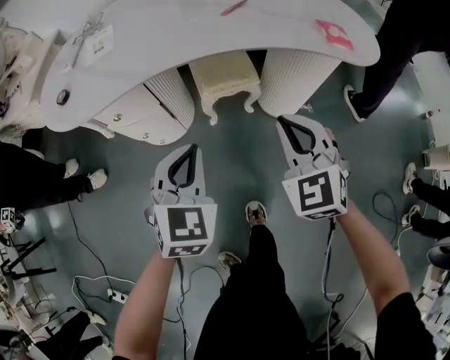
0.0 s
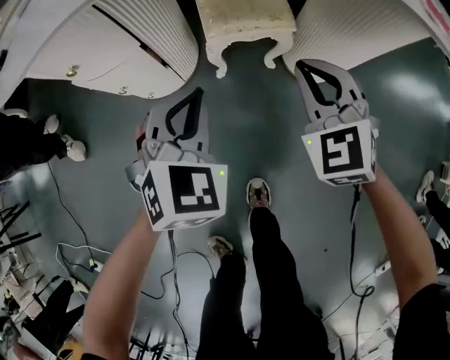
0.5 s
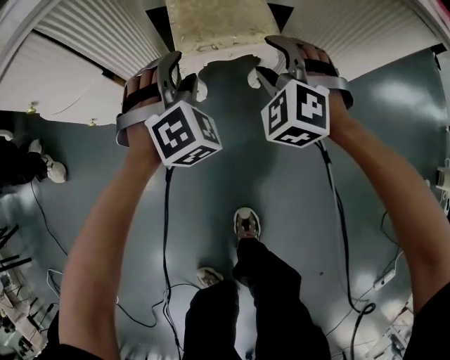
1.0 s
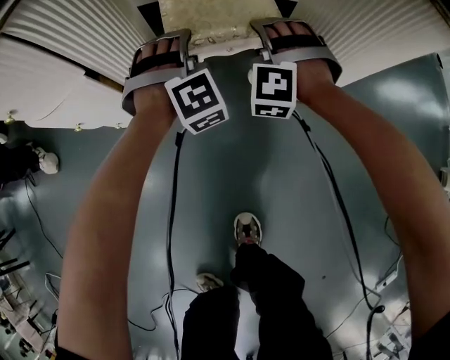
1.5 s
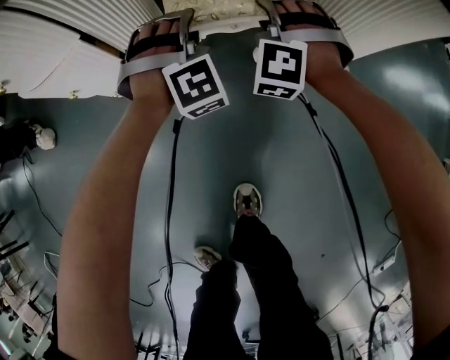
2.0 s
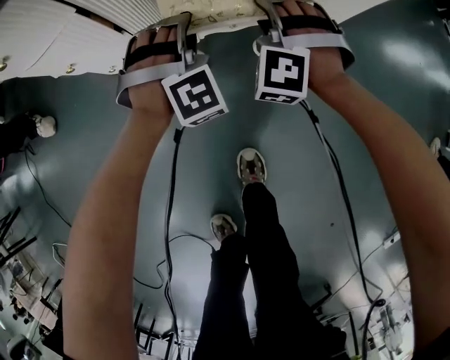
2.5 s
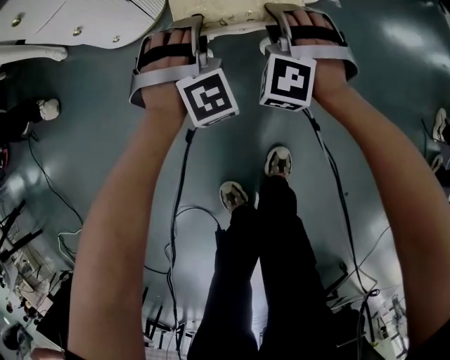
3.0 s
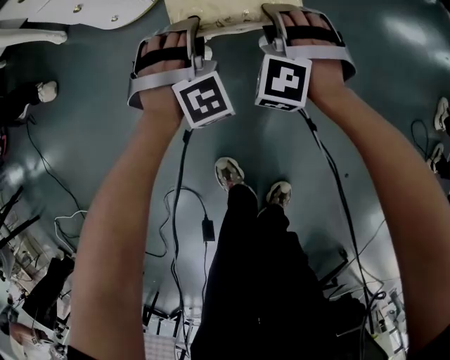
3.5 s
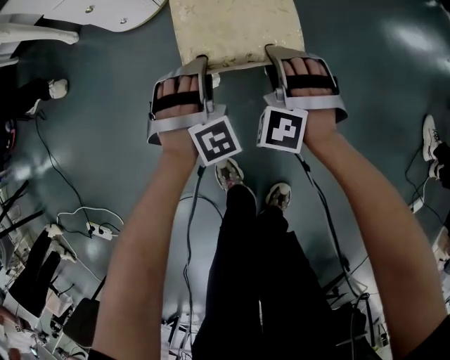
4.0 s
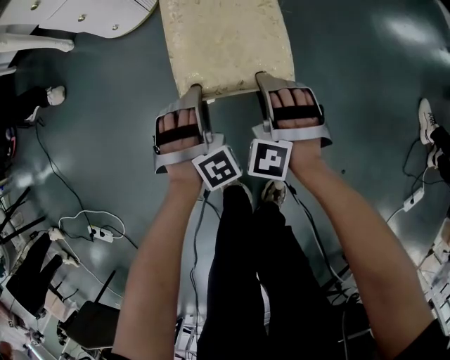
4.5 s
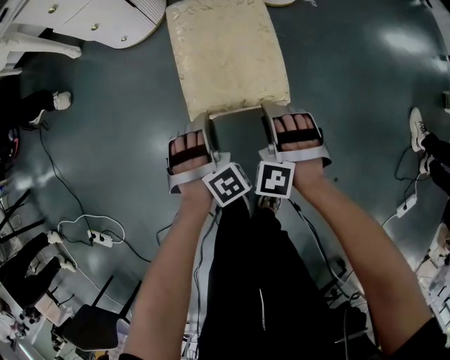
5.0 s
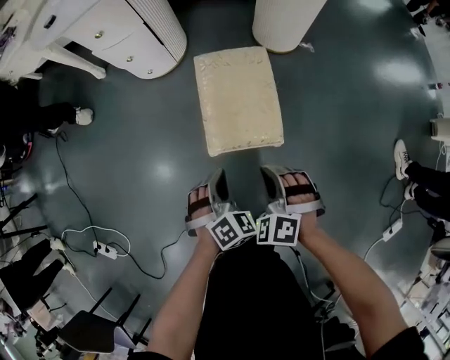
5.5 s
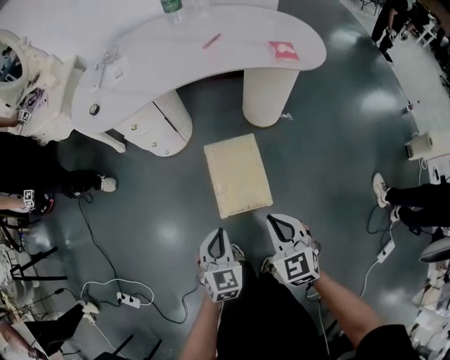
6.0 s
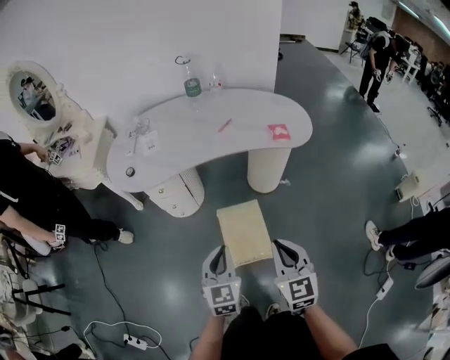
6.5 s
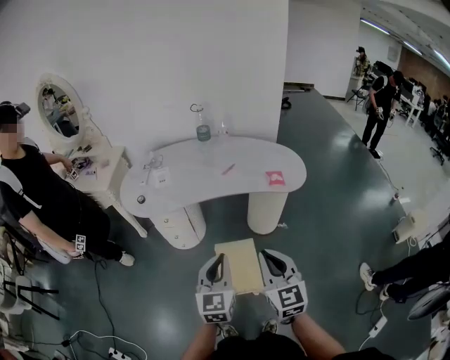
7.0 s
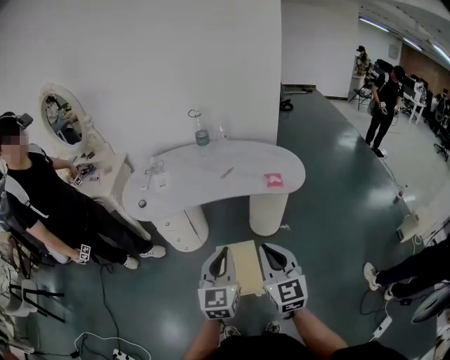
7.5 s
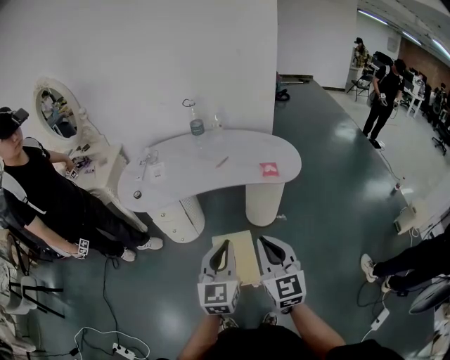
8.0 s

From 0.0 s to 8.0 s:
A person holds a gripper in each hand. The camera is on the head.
From 0.0 s to 2.0 s: The two grippers go some 50 cm downward and forward. The left gripper rolls clockwise, seen from behind, by approximately 50 degrees, and opens; the right gripper rotates around the line of its fingers by approximately 50 degrees, counterclockwise from behind, and opens up.
From 2.0 s to 4.0 s: Both grippers are carried backward, roughly 50 cm.
From 4.0 s to 6.0 s: Both grippers move upward, some 40 cm. The right gripper rotates around the line of its fingers by roughly 50 degrees, clockwise from behind, and closes. The left gripper twists some 70 degrees counterclockwise, seen from behind, and closes.
From 6.0 s to 8.0 s: Both grippers move upward, roughly 35 cm. The left gripper angles its fingers upward, by about 30 degrees. The right gripper swivels roughly 30 degrees.

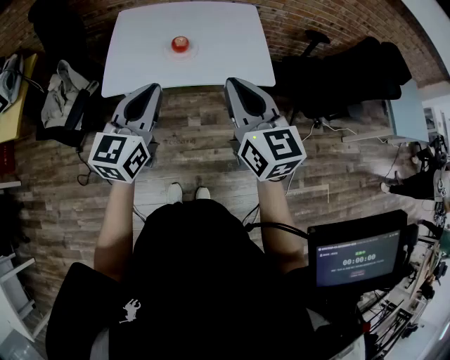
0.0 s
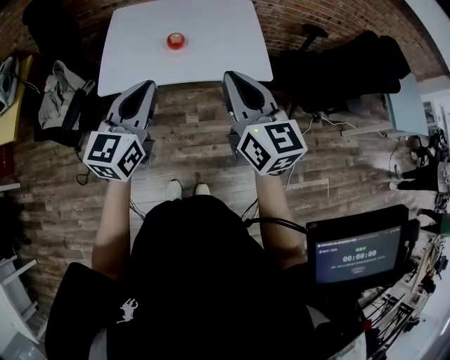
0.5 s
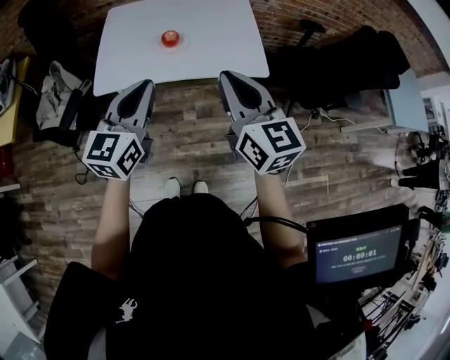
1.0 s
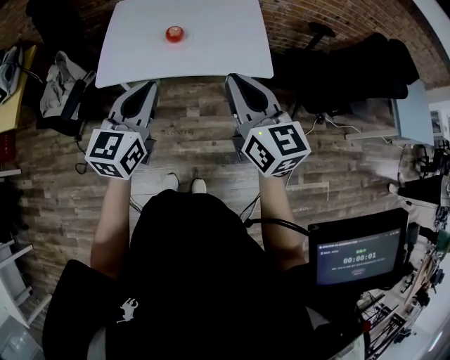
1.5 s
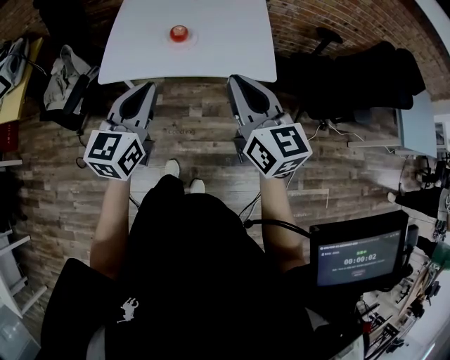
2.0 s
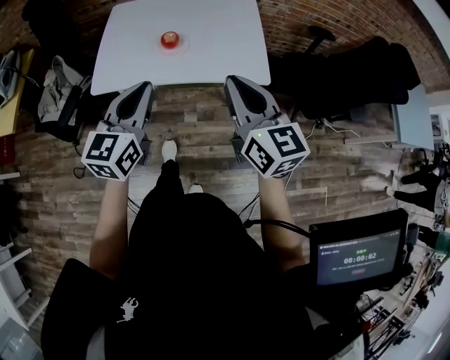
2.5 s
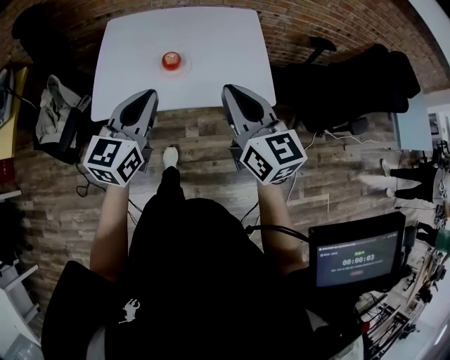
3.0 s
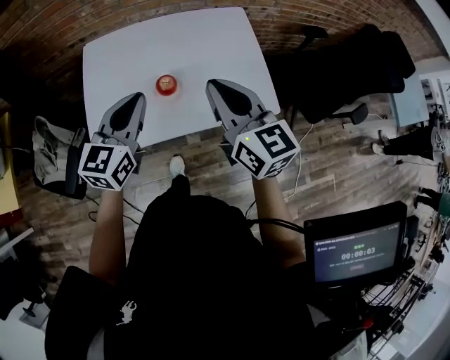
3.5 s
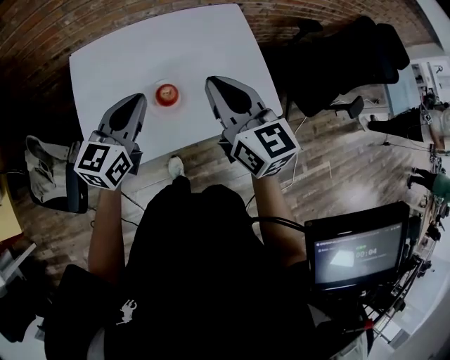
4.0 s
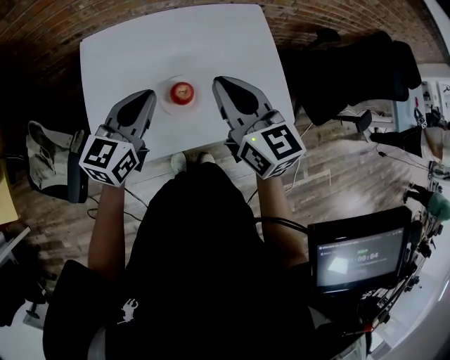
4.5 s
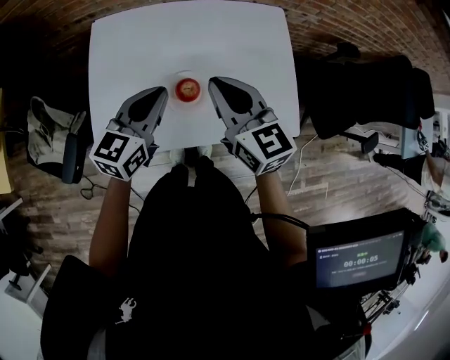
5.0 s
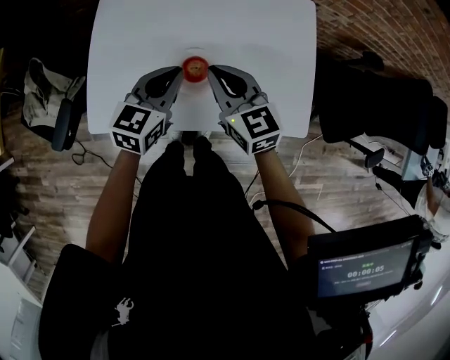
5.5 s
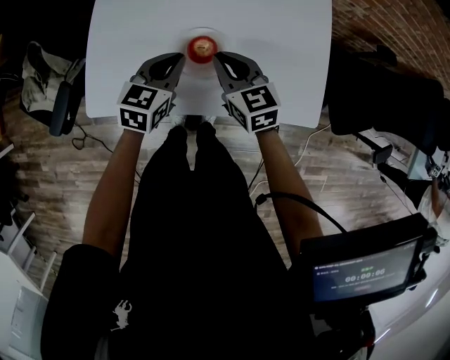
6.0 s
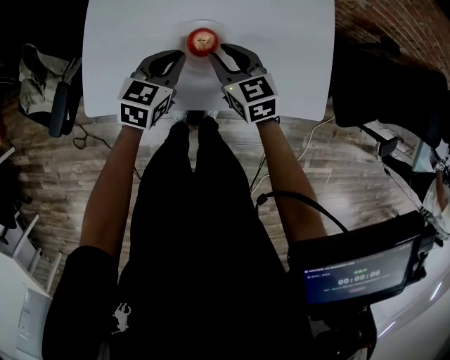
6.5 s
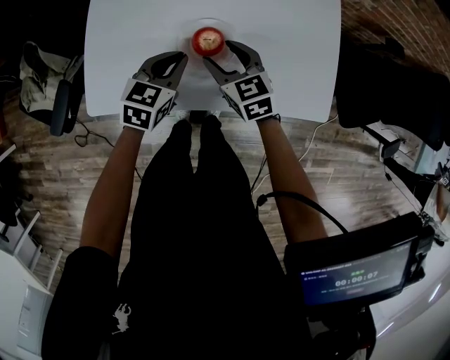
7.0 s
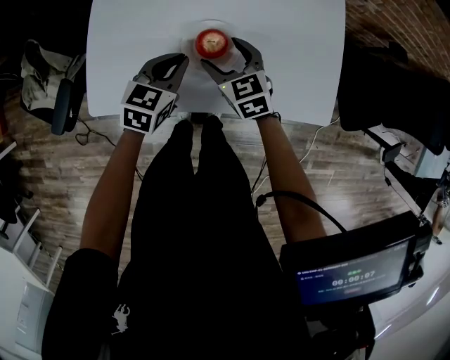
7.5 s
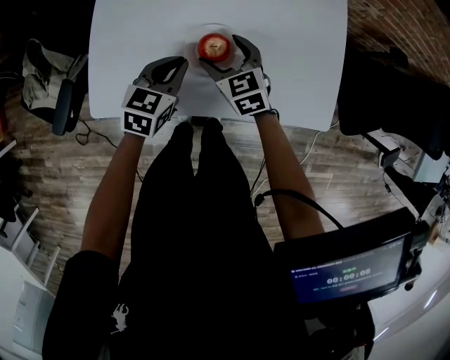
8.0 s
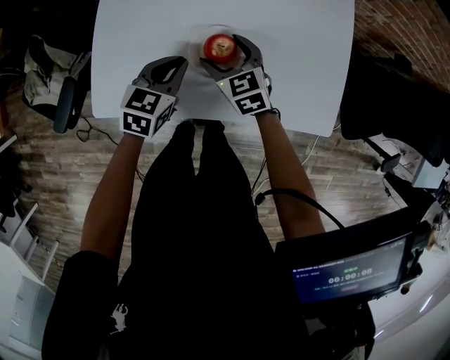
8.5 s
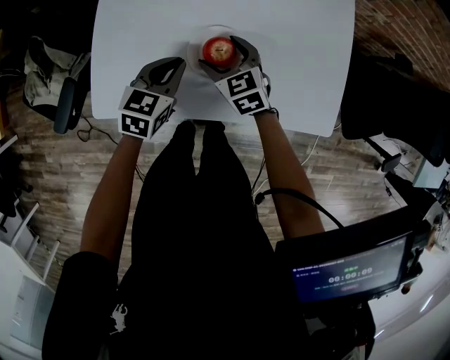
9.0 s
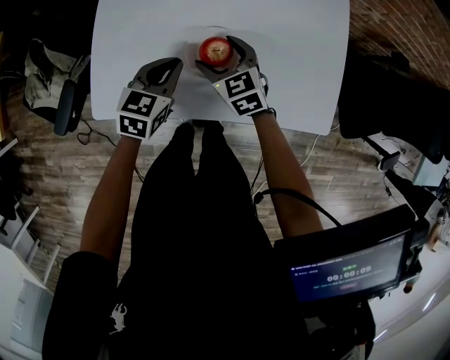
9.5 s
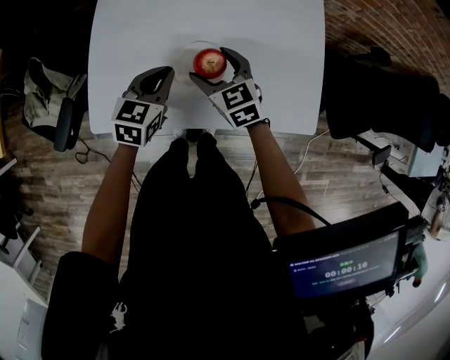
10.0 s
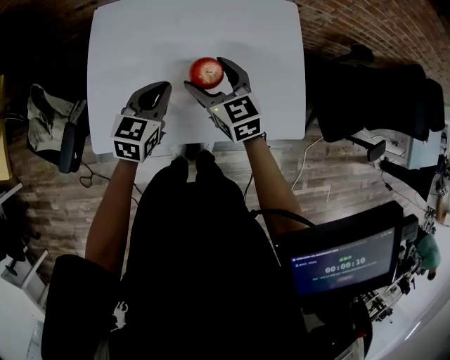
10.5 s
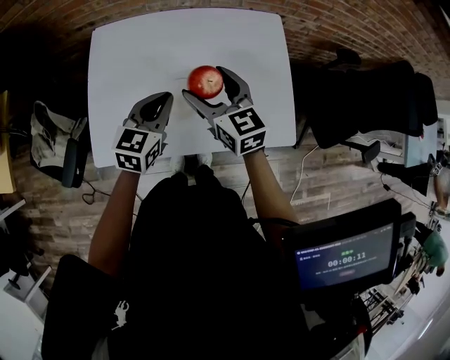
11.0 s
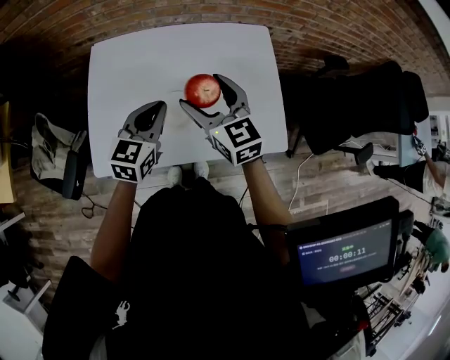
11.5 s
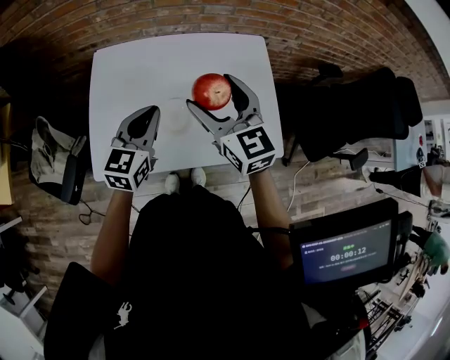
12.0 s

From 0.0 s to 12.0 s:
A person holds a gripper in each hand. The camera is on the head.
From 0.0 s to 2.0 s: The right gripper goes some 5 cm to the right.
From 2.0 s to 4.0 s: Both grippers move forward, some 30 cm. The left gripper rotates about 20 degrees.
From 4.0 s to 6.0 s: Both grippers move downward, about 20 cm. The right gripper rotates about 30 degrees; the left gripper turns by roughly 20 degrees.
From 6.0 s to 8.0 s: The right gripper travels downward by about 10 cm, and opens.
From 8.0 s to 10.0 s: The right gripper goes about 5 cm upward.
From 10.0 s to 12.0 s: The right gripper heads upward, covering about 25 cm, and rotates approximately 30 degrees. The left gripper goes roughly 15 cm upward.

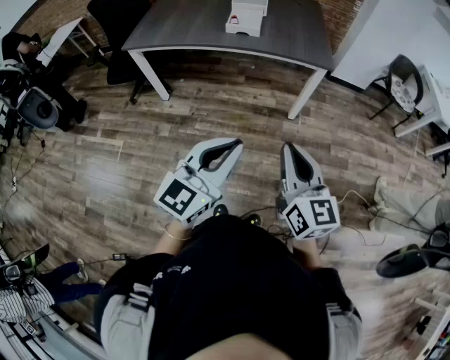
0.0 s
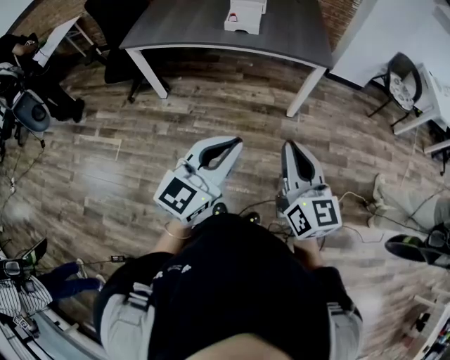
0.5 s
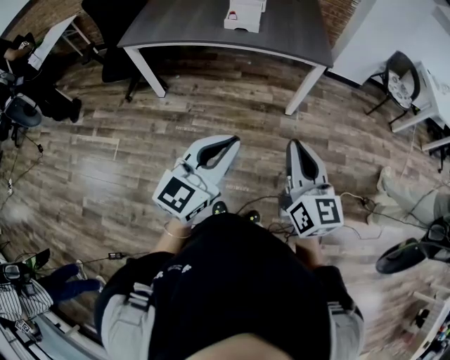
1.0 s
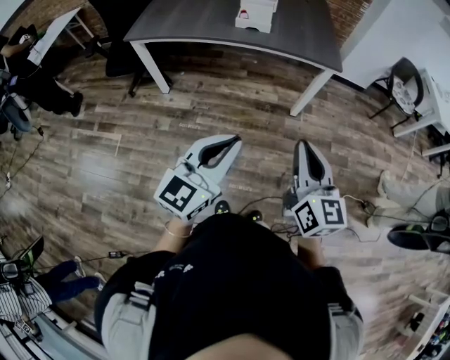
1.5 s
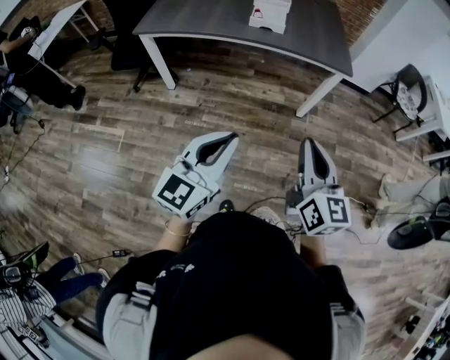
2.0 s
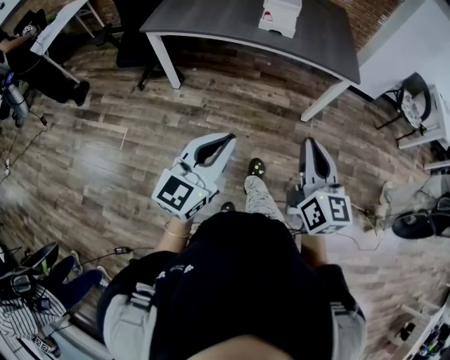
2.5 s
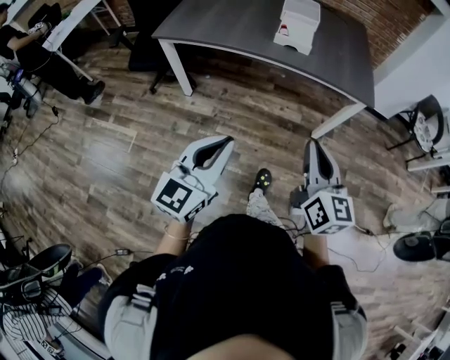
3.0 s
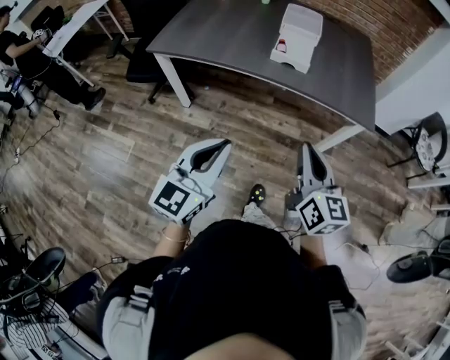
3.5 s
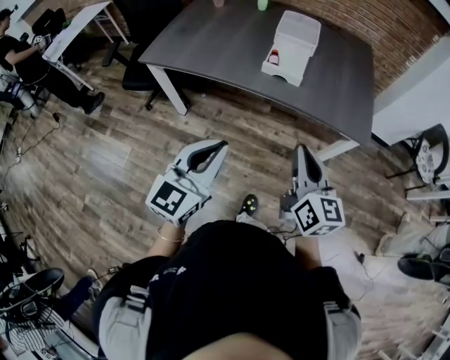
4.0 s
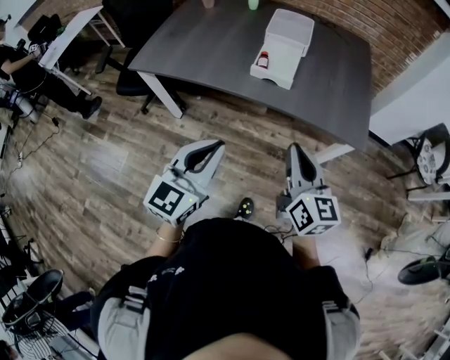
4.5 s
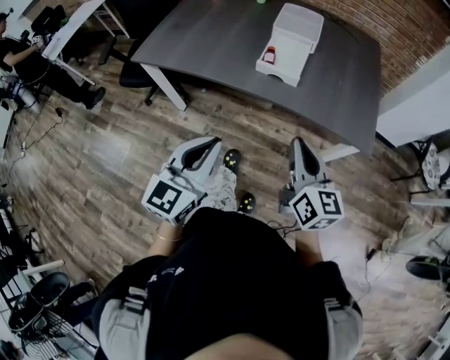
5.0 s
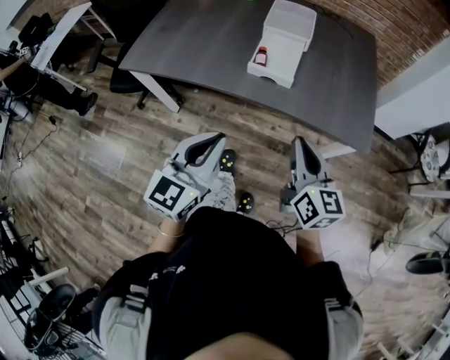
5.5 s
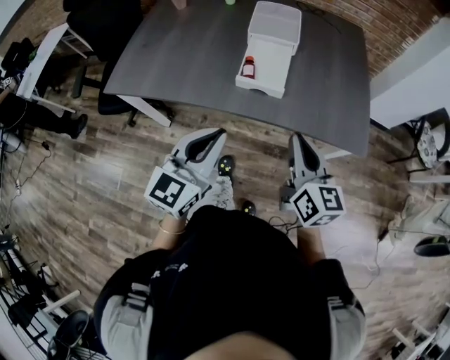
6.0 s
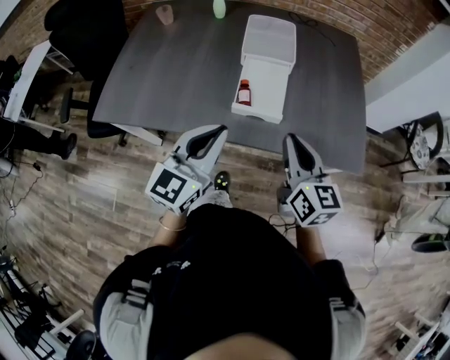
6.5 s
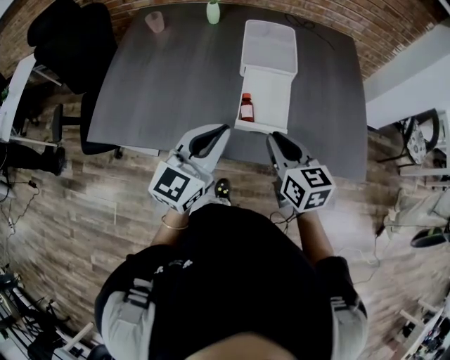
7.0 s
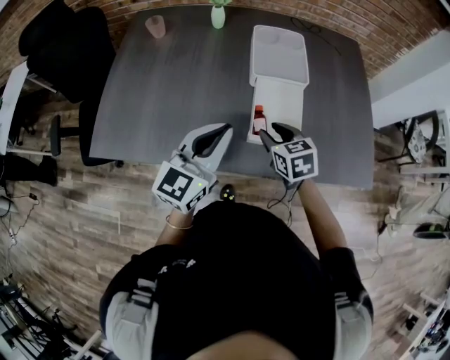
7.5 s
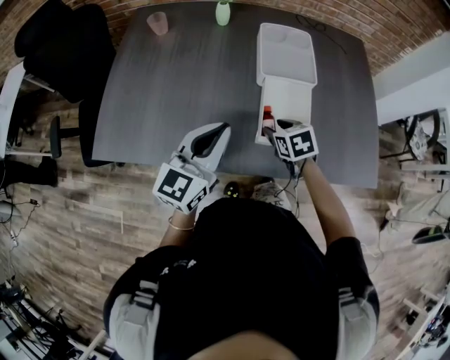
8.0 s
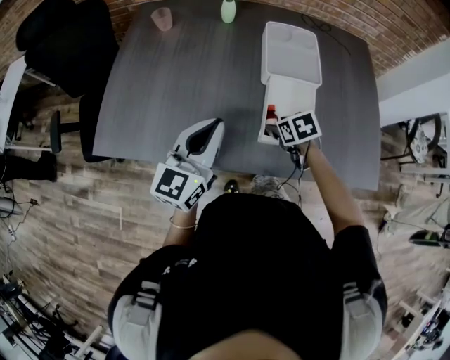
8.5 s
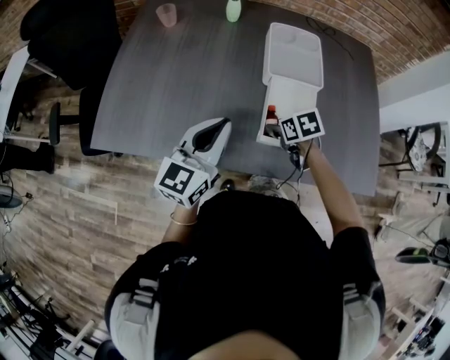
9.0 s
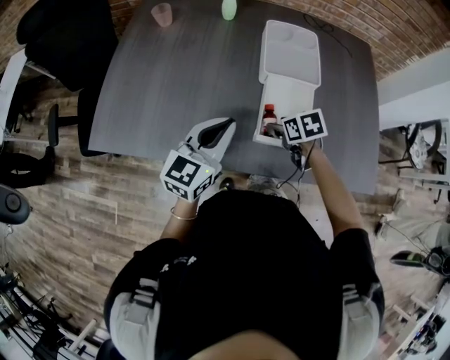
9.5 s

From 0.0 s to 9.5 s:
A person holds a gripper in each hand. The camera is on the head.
From 0.0 s to 2.0 s: The left gripper travels to the left by roughly 15 cm; the right gripper goes some 10 cm to the left.
From 2.0 s to 4.0 s: Both grippers move forward, roughly 30 cm.
From 4.0 s to 5.5 s: The two grippers go roughly 10 cm forward.
From 5.5 s to 7.5 s: The right gripper is displaced forward and to the left by some 35 cm, tilts its fingers some 30 degrees downward, and opens up, while the left gripper is displaced forward by roughly 35 cm.
From 7.5 s to 9.5 s: Both grippers travel together downward, approximately 5 cm. The right gripper rotates roughly 20 degrees.
